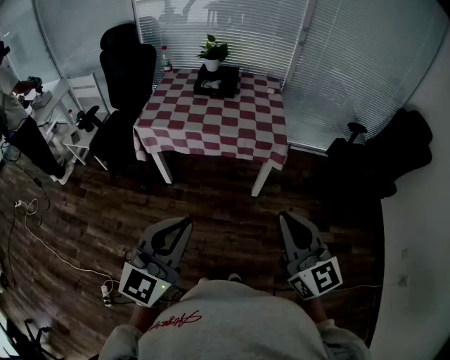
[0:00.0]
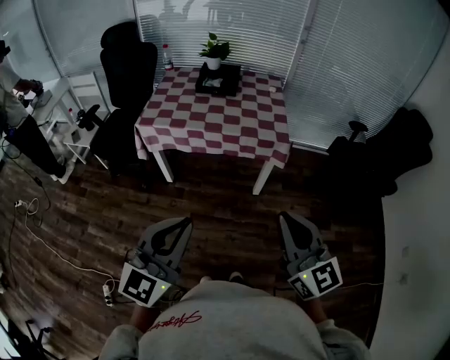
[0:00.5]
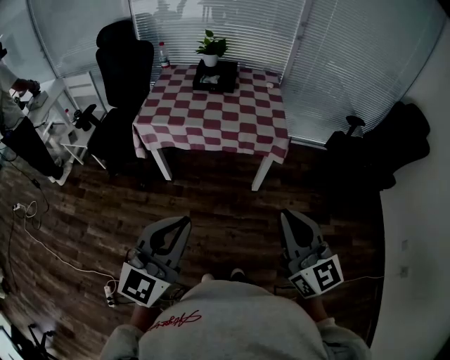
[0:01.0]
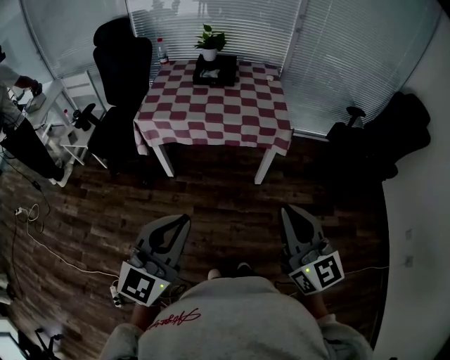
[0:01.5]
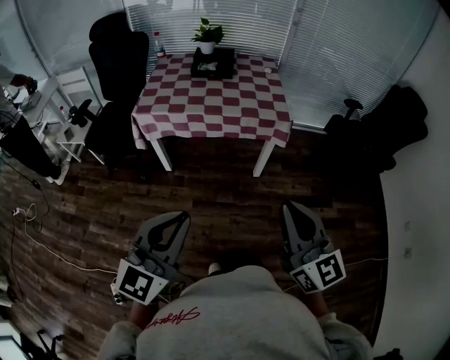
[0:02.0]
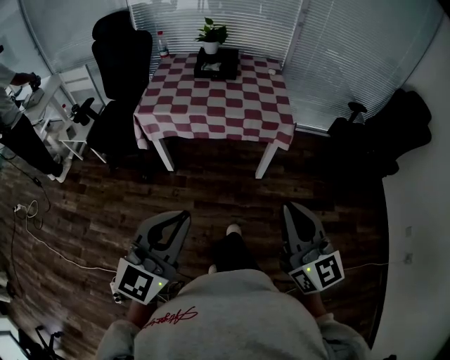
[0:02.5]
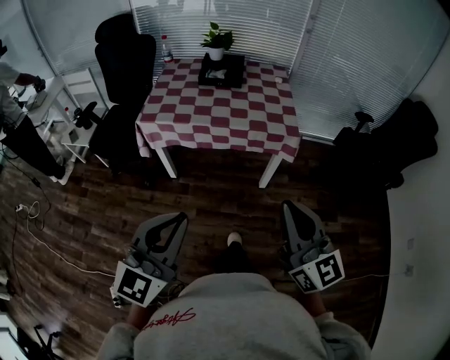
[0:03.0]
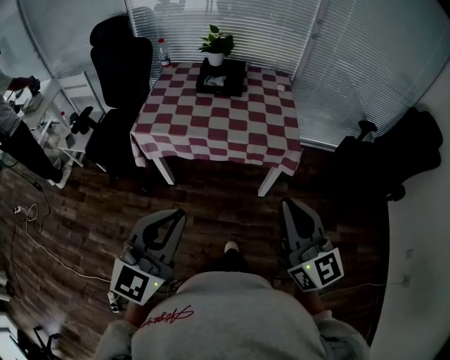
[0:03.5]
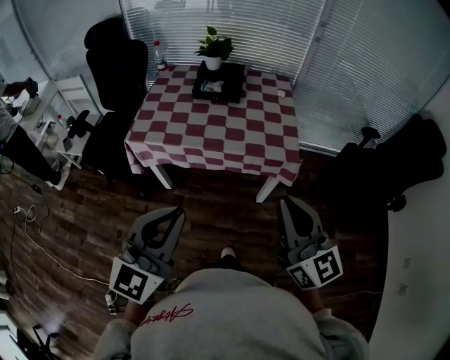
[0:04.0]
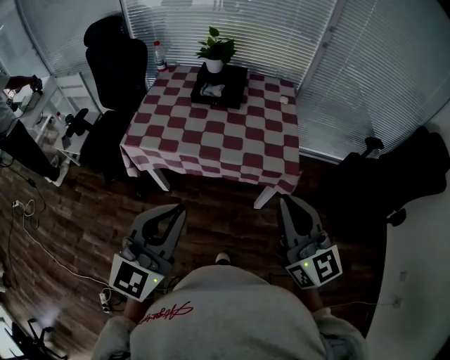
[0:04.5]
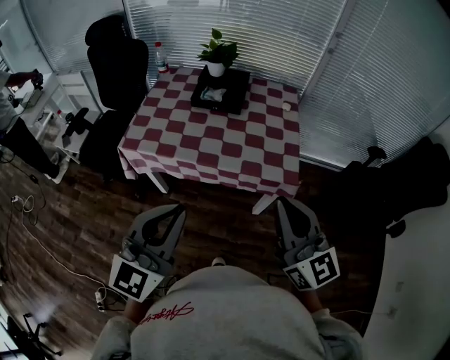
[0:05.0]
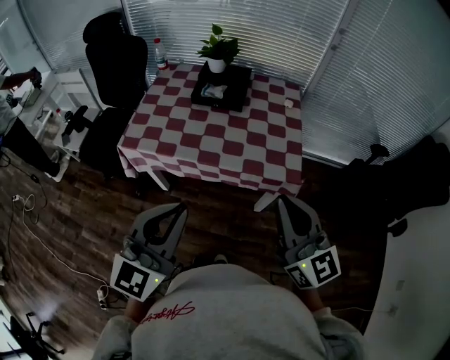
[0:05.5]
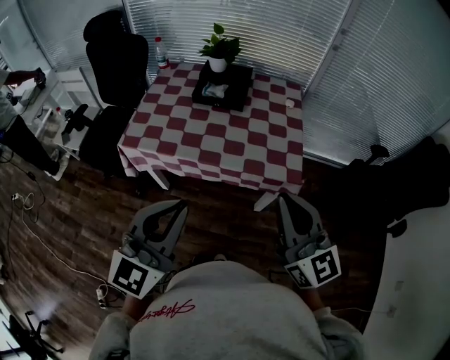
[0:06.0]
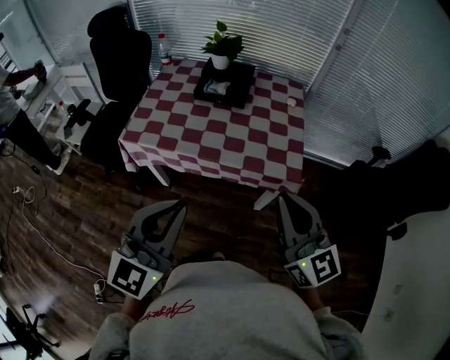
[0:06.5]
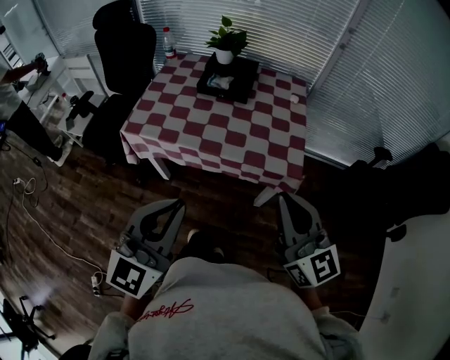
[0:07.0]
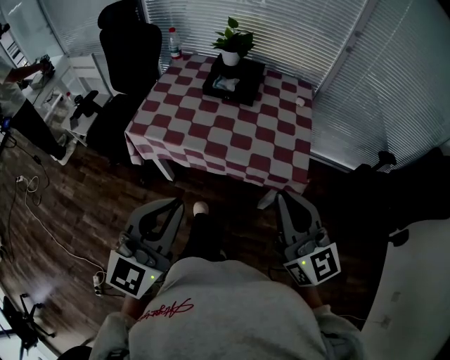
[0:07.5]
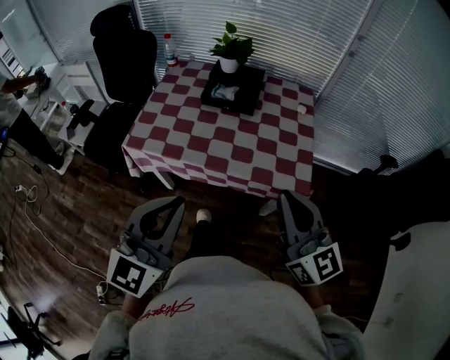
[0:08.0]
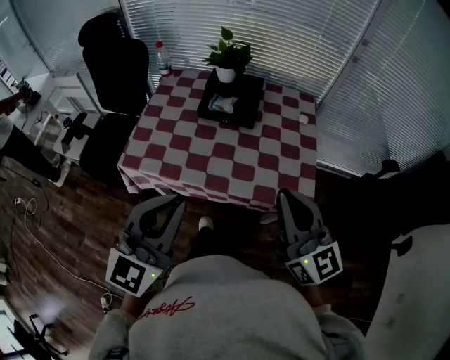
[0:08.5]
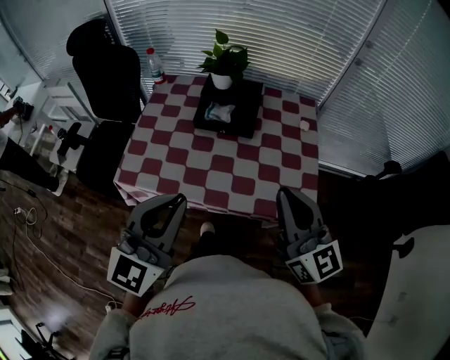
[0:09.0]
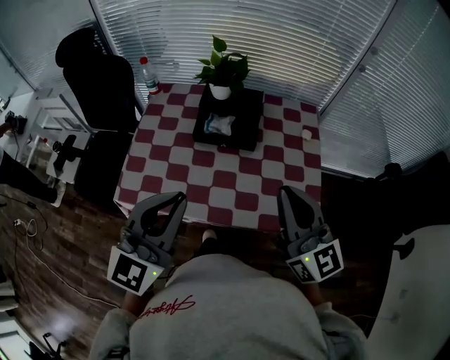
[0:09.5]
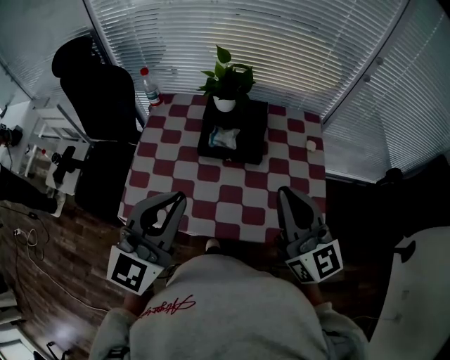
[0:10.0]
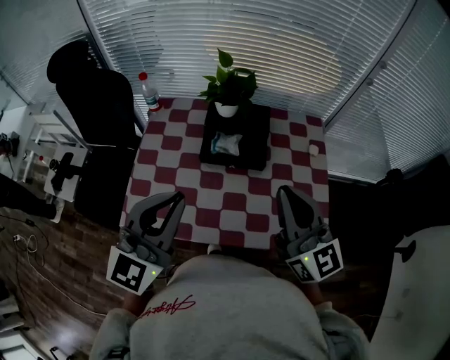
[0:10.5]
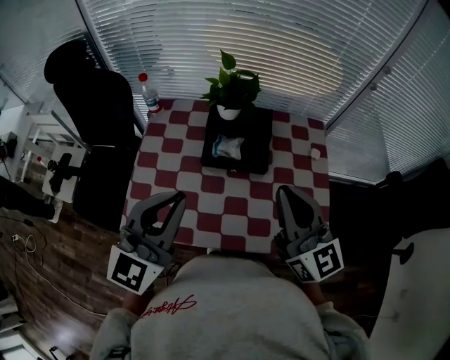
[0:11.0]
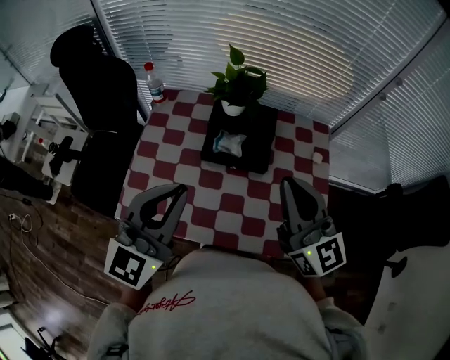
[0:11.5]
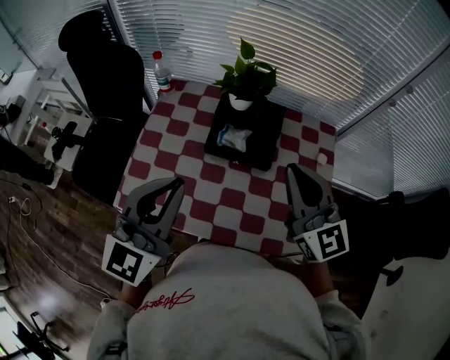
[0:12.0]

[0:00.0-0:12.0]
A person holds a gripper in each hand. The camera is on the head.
0:00.0 to 0:02.0: The two grippers go roughly 5 cm to the left.
0:02.0 to 0:04.0: Both grippers move forward, some 20 cm.
0:04.0 to 0:06.0: The two grippers go about 10 cm forward.
0:06.0 to 0:08.0: The right gripper moves some 5 cm.
0:08.0 to 0:10.0: Both grippers move forward, about 25 cm.
0:10.0 to 0:12.0: The right gripper heads forward, covering some 10 cm. Meanwhile the left gripper moves forward, approximately 5 cm.

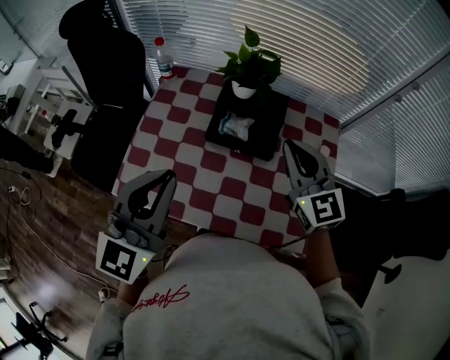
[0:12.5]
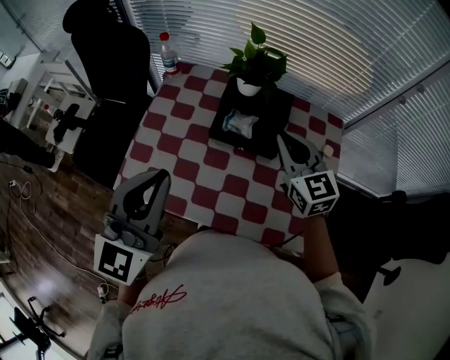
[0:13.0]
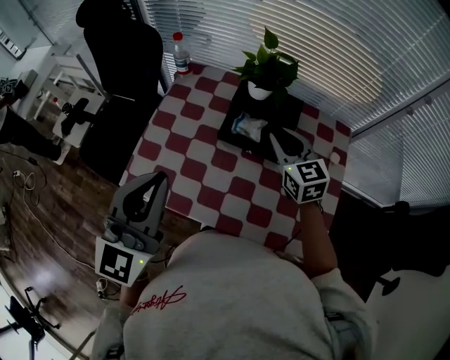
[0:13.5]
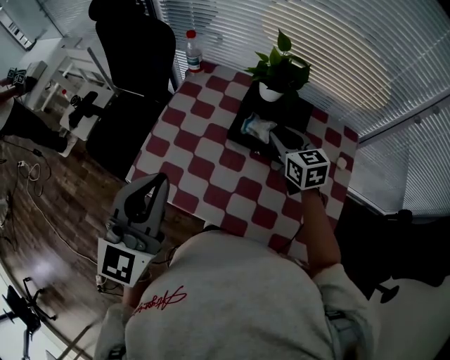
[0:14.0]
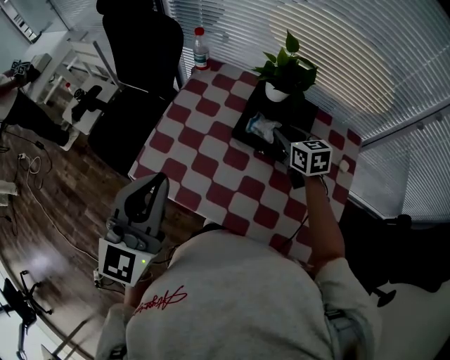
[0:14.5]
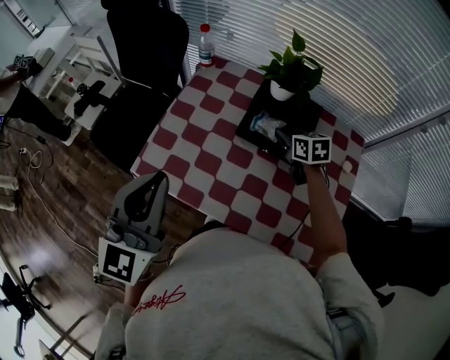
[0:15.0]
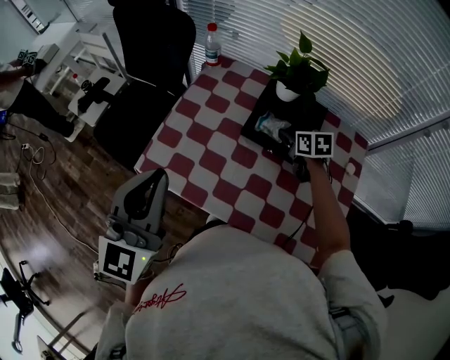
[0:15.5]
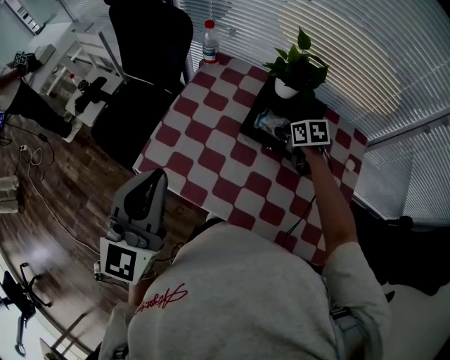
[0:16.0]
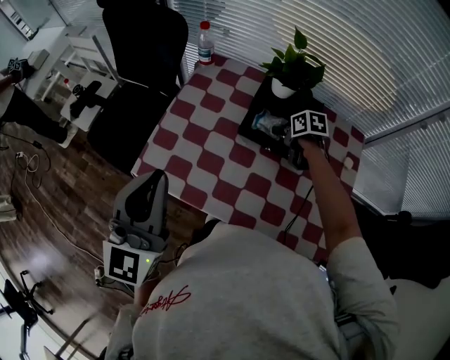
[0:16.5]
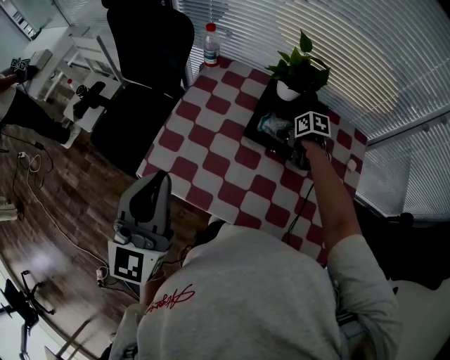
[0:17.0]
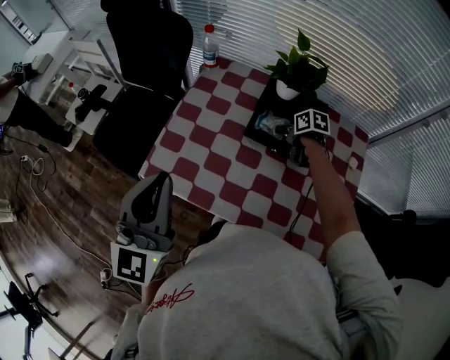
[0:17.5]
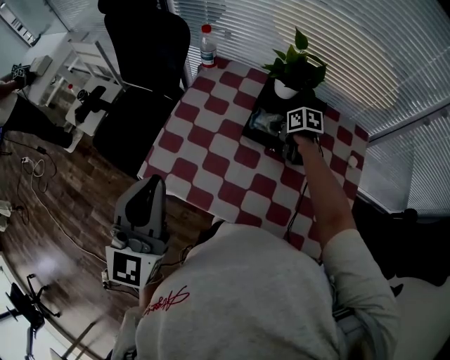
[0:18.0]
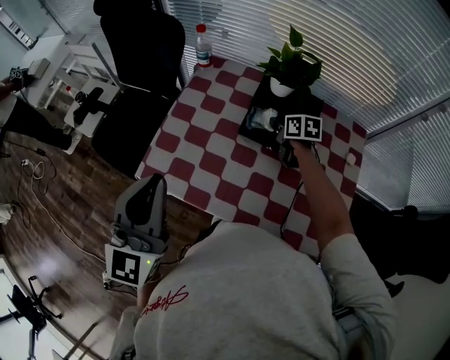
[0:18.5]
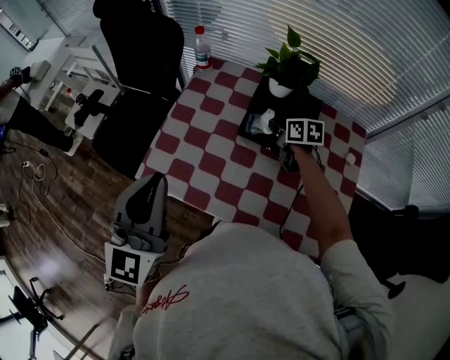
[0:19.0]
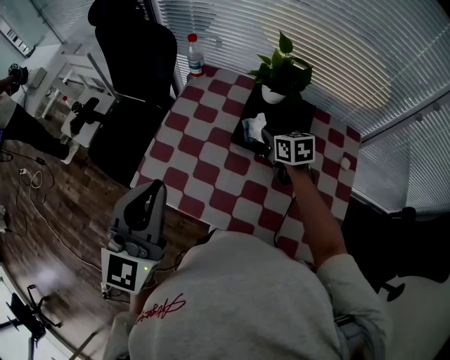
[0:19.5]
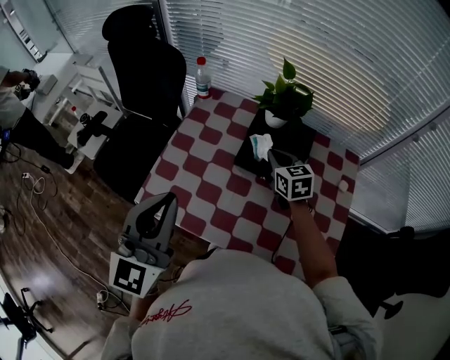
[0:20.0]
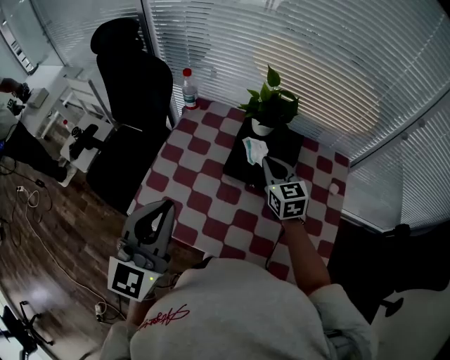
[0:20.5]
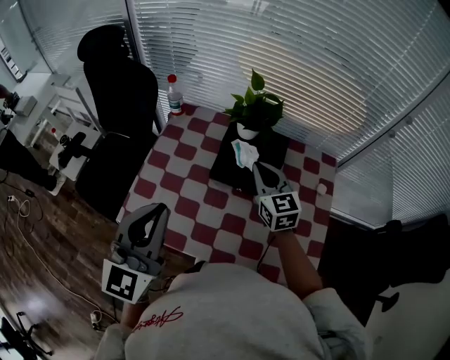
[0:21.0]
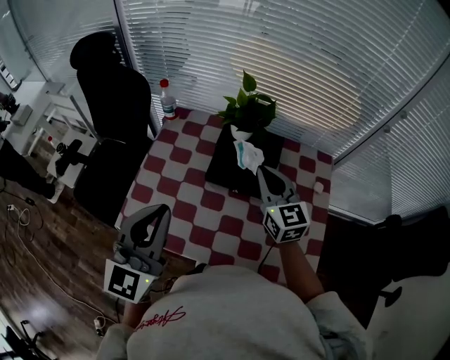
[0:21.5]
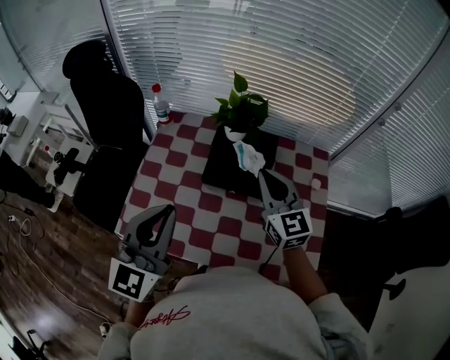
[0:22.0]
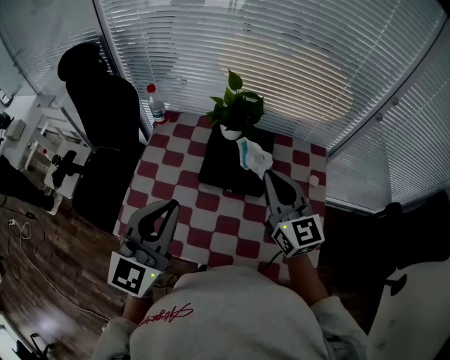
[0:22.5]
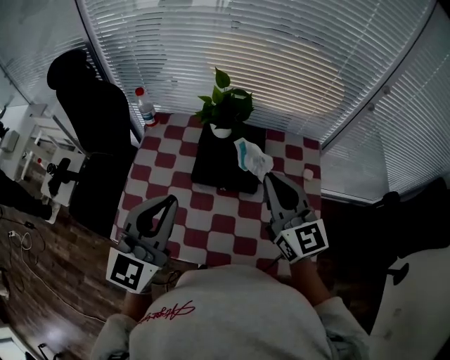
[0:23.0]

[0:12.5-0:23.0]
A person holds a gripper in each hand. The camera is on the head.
0:12.5 to 0:14.5: The right gripper travels downward and forward by about 20 cm, rotates roughly 30 degrees, and opens up. Meanwhile the left gripper heads to the left, covering approximately 5 cm.
0:14.5 to 0:16.5: The right gripper heads downward, covering about 10 cm, and turns by approximately 40 degrees.
0:16.5 to 0:19.0: The right gripper closes.
0:19.0 to 0:21.0: The right gripper travels upward and backward by about 15 cm, and changes its angle by approximately 40 degrees. Meanwhile the left gripper goes approximately 5 cm to the right.
0:21.0 to 0:23.0: The right gripper goes approximately 15 cm upward, backward and to the right. The left gripper heads to the right, covering roughly 5 cm.

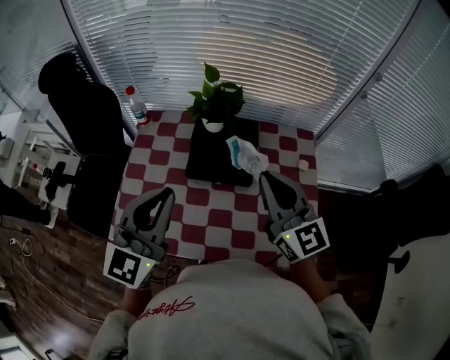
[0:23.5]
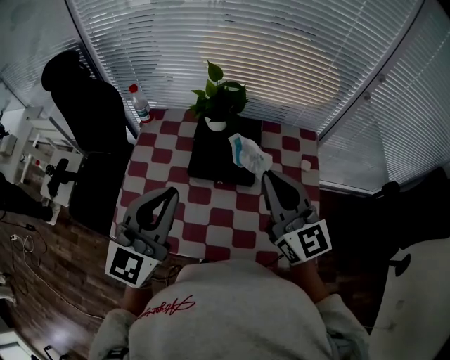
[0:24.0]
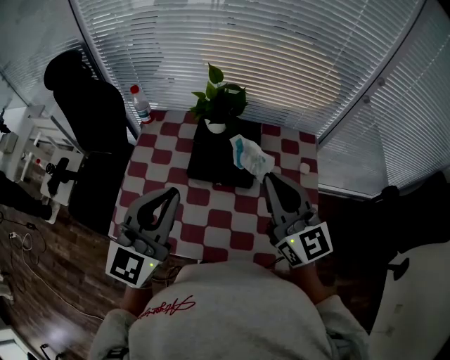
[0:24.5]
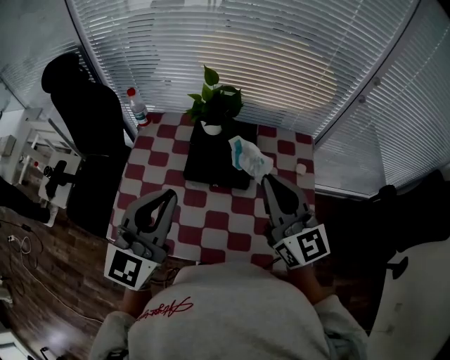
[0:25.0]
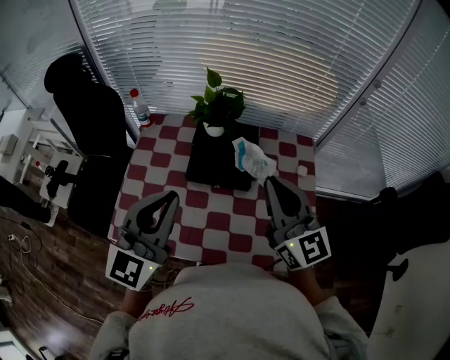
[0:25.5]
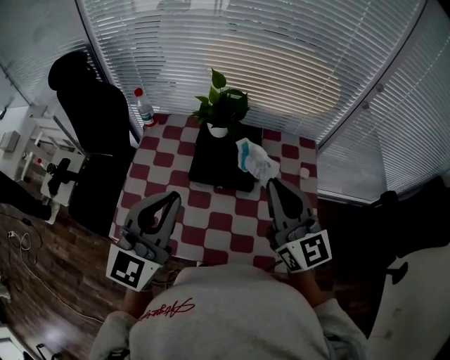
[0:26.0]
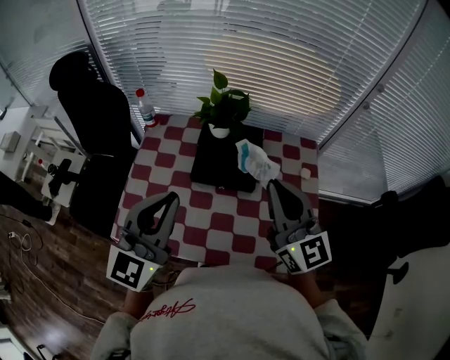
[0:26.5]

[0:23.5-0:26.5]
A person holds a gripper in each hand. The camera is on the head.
0:23.5 to 0:26.5: The grippers move only a little.

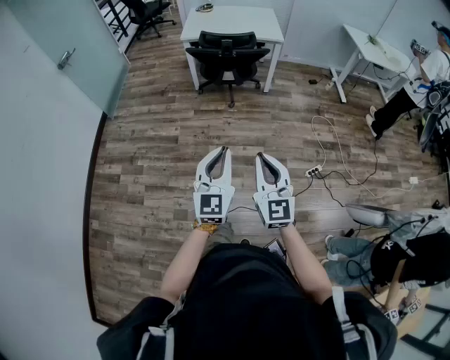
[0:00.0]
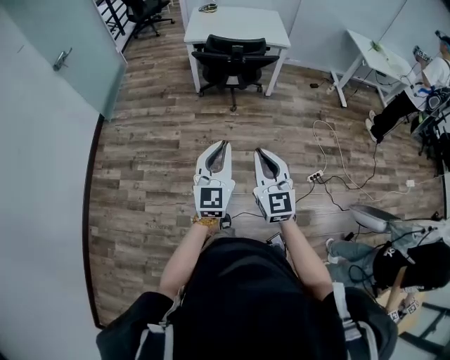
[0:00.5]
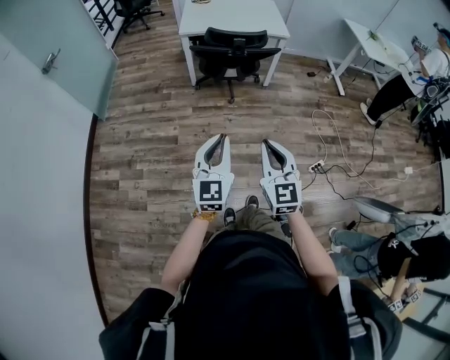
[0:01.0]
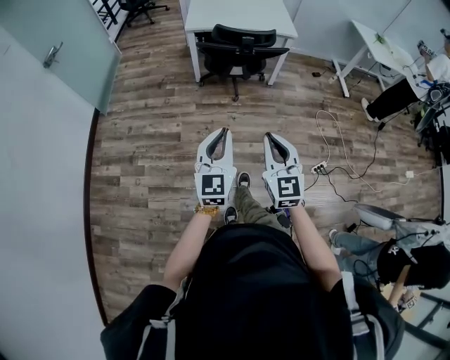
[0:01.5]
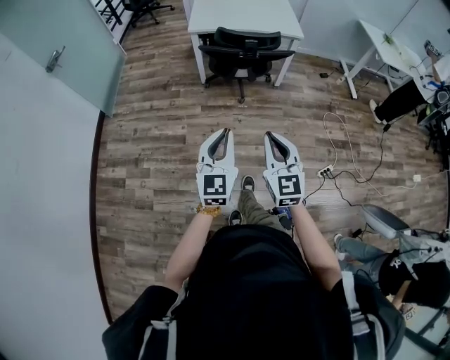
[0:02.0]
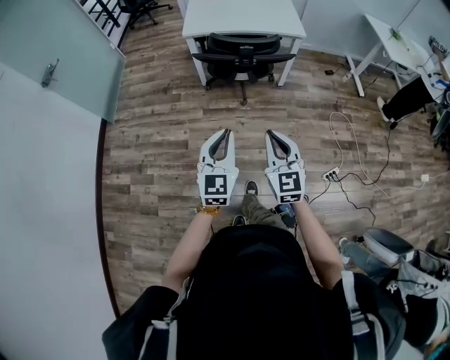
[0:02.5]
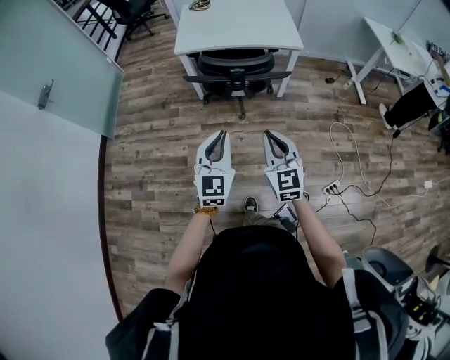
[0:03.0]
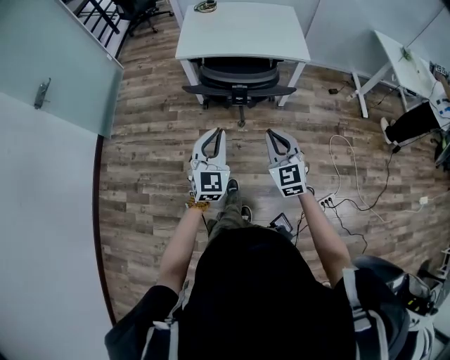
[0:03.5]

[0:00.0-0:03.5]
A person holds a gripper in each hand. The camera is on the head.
0:00.0 to 0:02.0: The two grippers go some 25 cm forward and to the left.
0:02.0 to 0:03.5: Both grippers move forward, approximately 30 cm.
